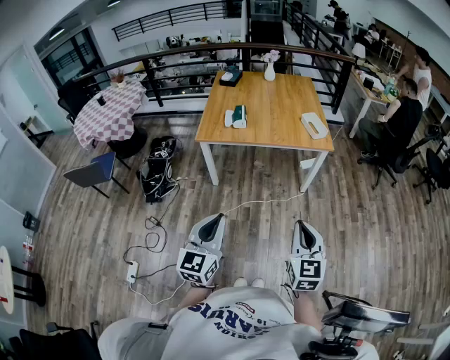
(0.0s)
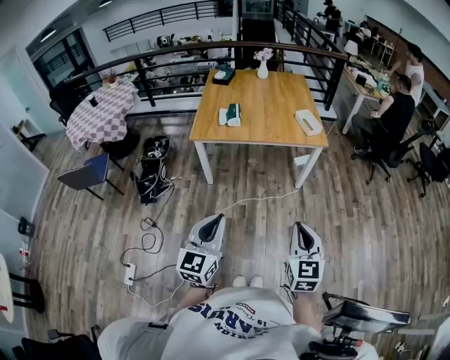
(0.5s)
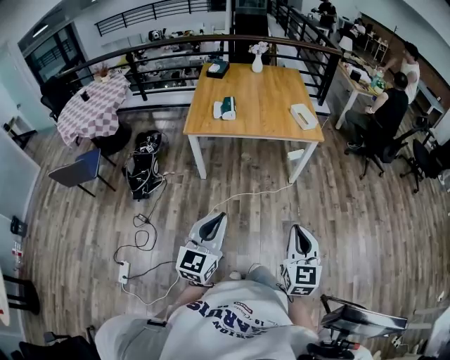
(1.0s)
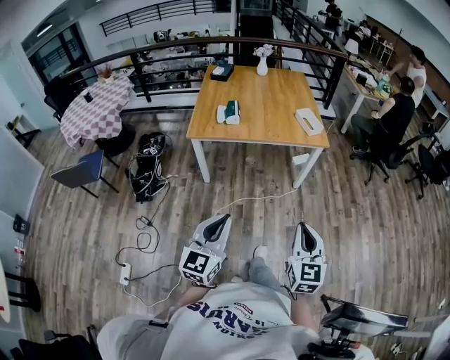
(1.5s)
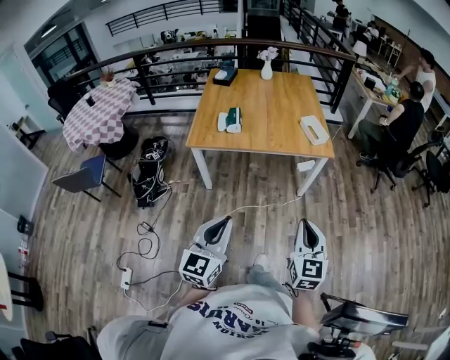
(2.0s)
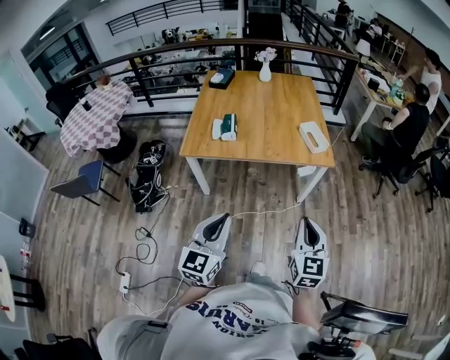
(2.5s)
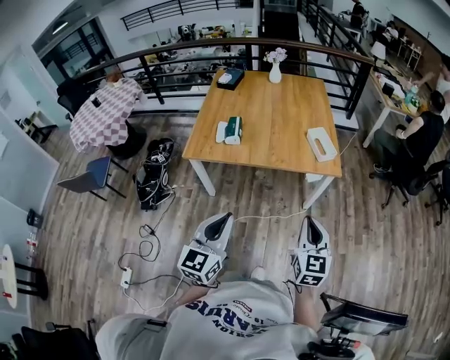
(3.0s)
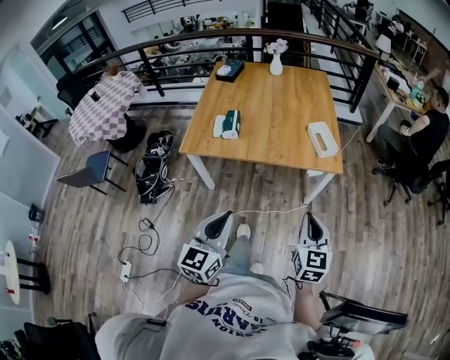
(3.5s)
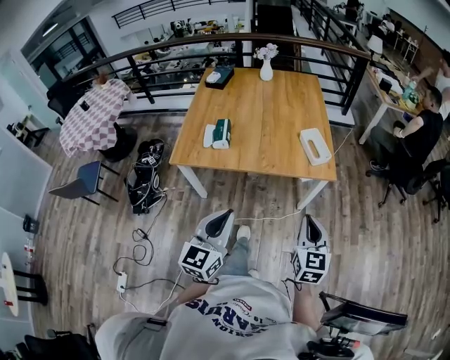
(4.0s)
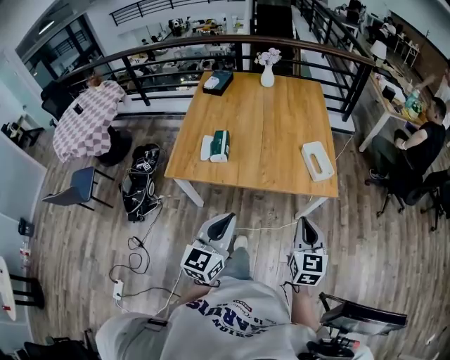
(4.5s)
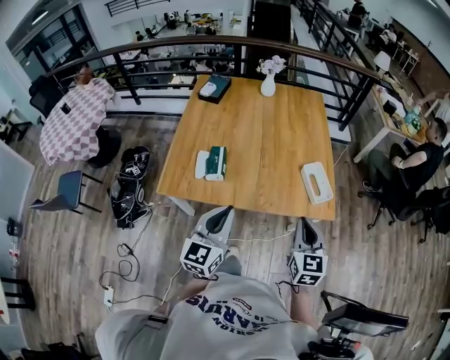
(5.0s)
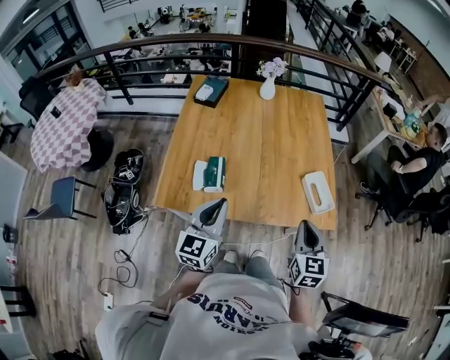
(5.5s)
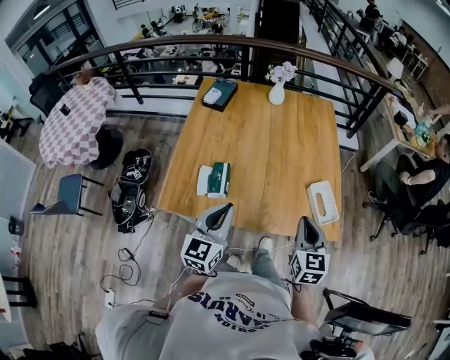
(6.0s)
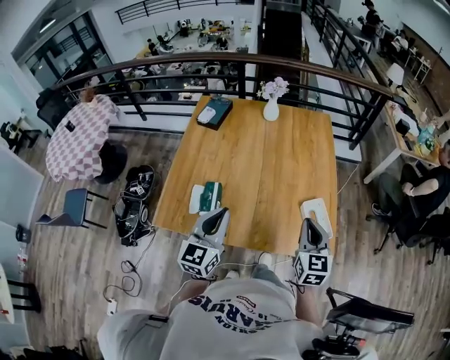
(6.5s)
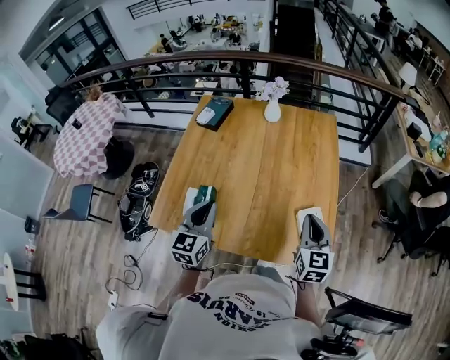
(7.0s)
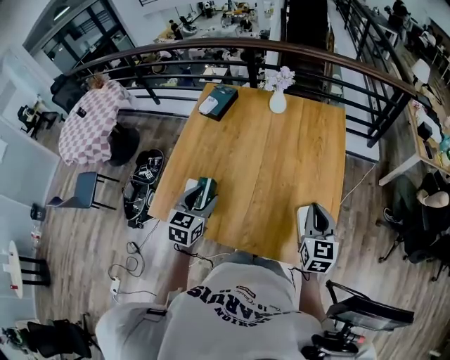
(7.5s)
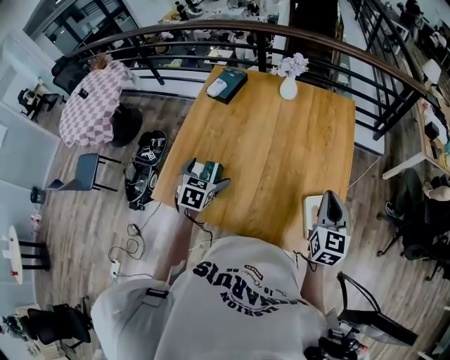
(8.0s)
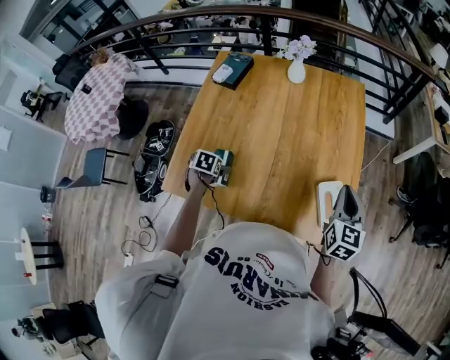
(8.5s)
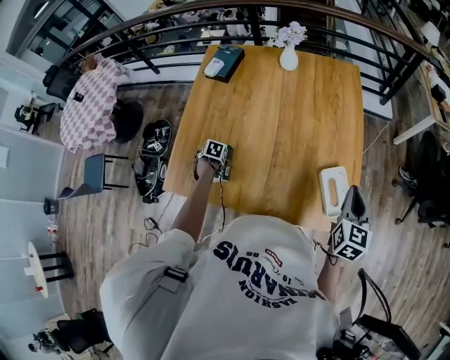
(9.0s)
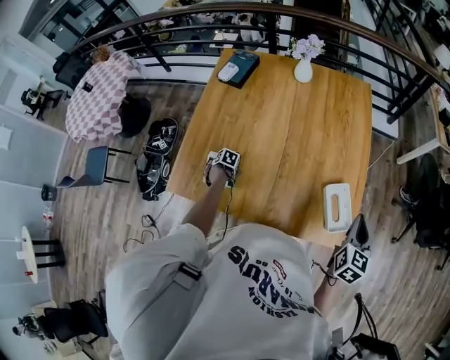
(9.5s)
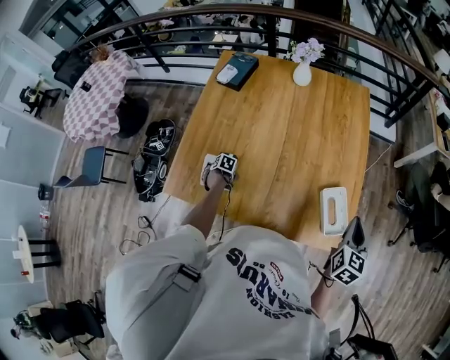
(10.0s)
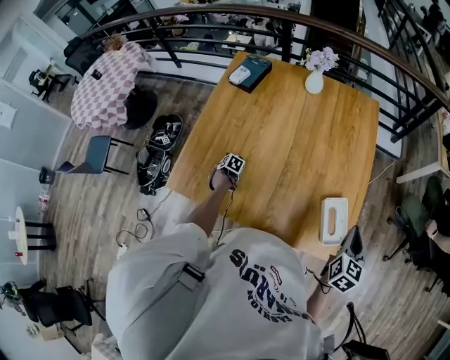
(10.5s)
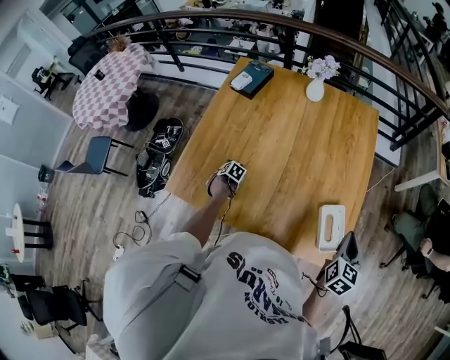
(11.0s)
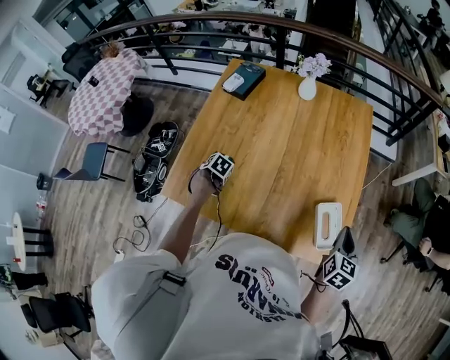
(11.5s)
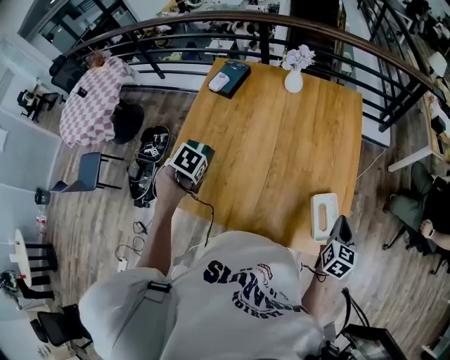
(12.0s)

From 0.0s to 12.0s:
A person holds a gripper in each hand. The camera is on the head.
From 0.0s to 2.0s: The grippers both shift forward by about 10 cm.
From 2.0s to 4.0s: Both grippers travel together forward, roughly 25 cm.
From 4.0s to 6.0s: Both grippers travel together forward, roughly 35 cm.
From 6.0s to 8.0s: The right gripper shifts about 25 cm forward and to the right; the left gripper moves forward and downward, about 25 cm, tips its fingers downward by about 40 degrees, and opens its fingers.
From 8.0s to 10.0s: The left gripper heads downward, covering some 30 cm, and points its fingers roughly 40 degrees further downward. The right gripper moves roughly 10 cm.
From 10.0s to 12.0s: The left gripper is displaced upward by approximately 30 cm, and closes.

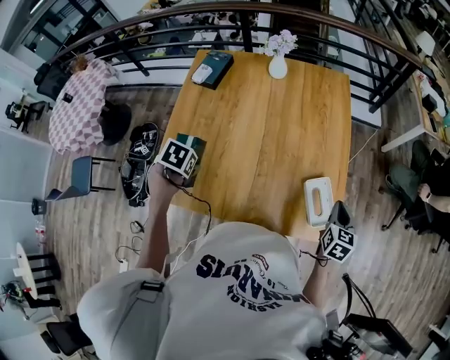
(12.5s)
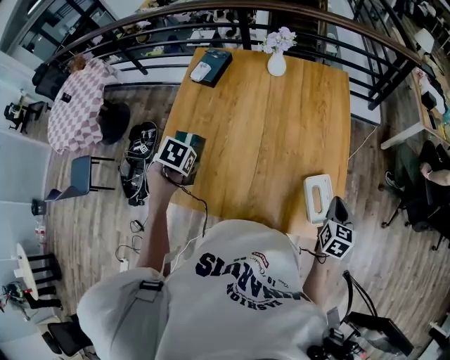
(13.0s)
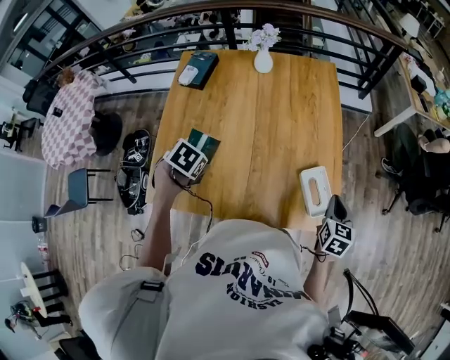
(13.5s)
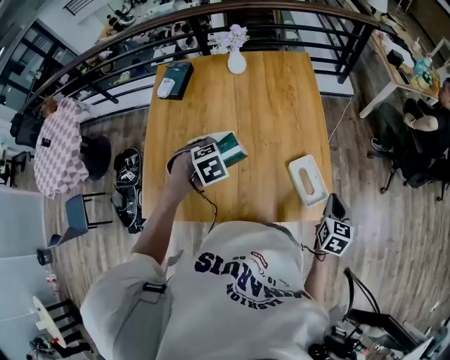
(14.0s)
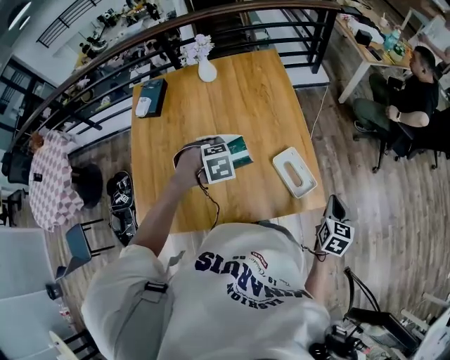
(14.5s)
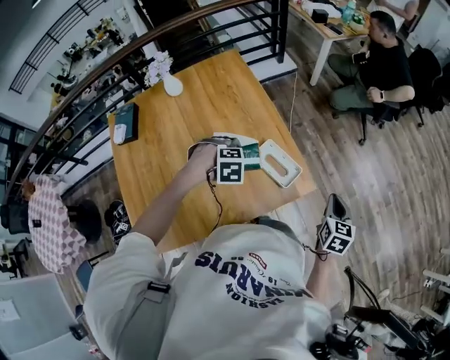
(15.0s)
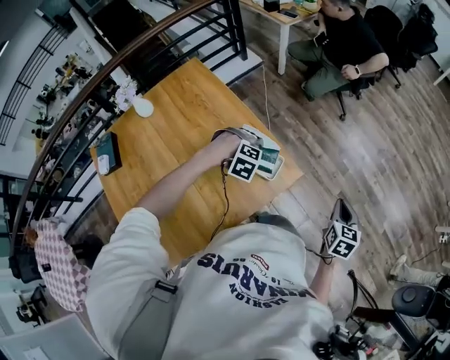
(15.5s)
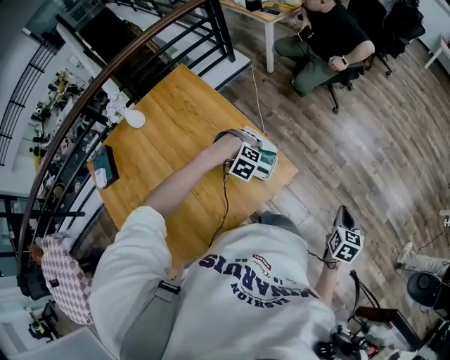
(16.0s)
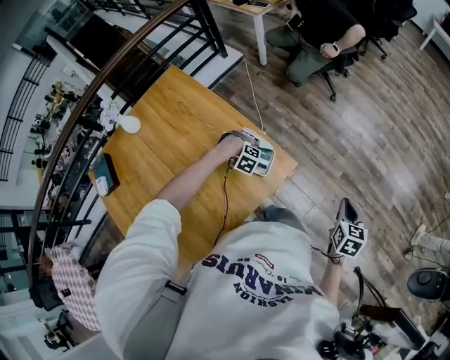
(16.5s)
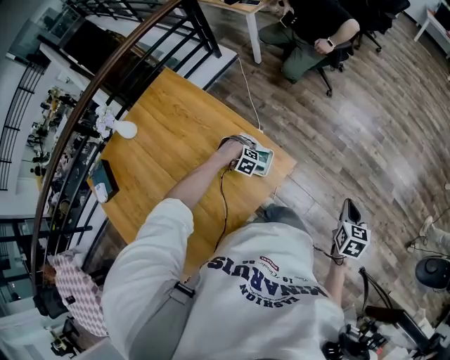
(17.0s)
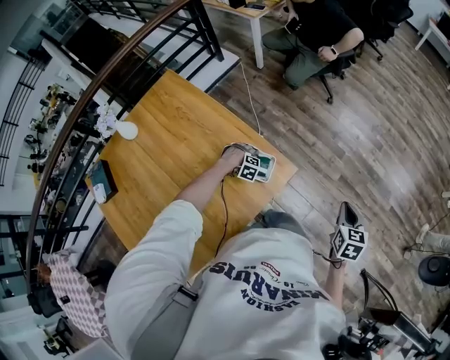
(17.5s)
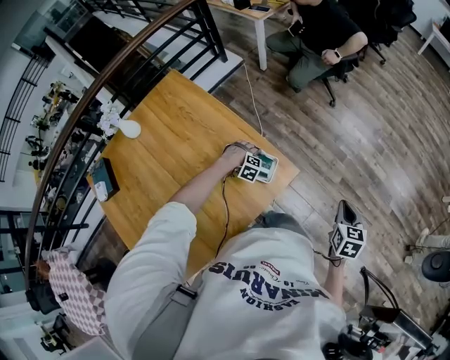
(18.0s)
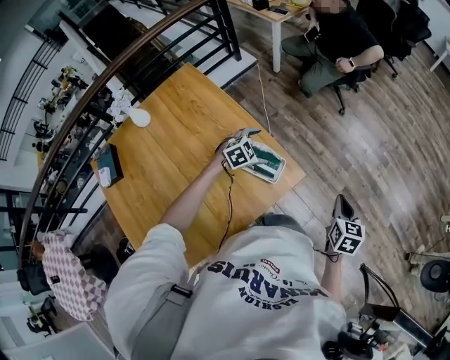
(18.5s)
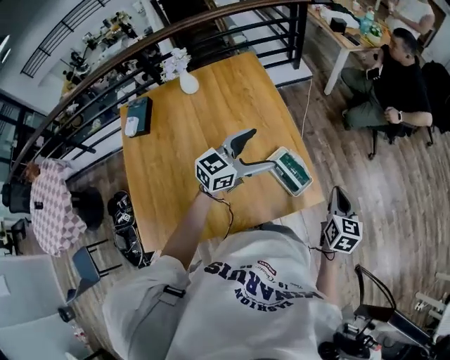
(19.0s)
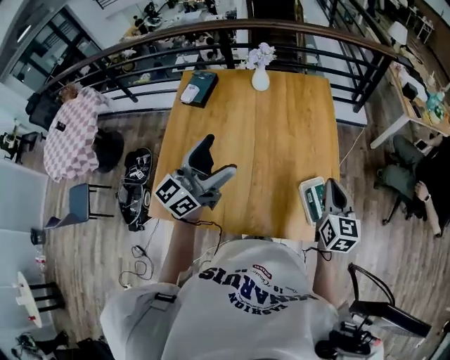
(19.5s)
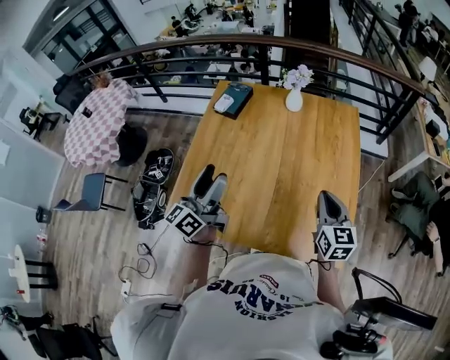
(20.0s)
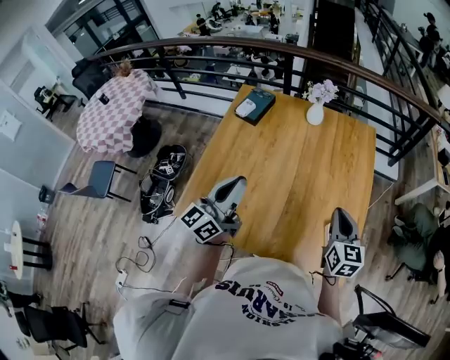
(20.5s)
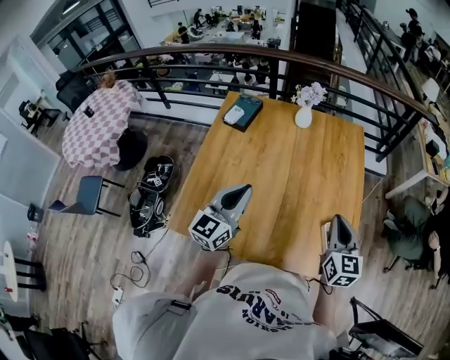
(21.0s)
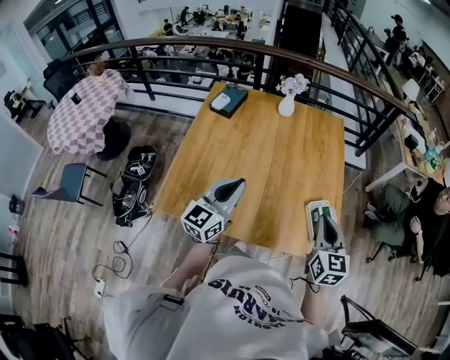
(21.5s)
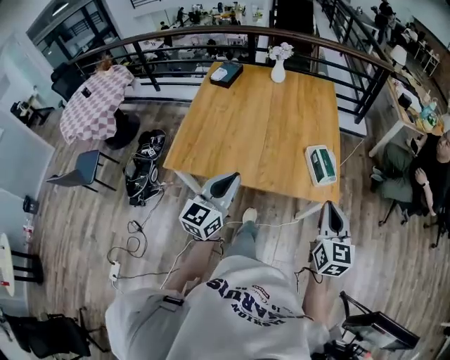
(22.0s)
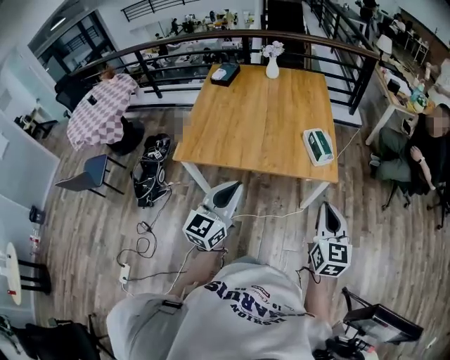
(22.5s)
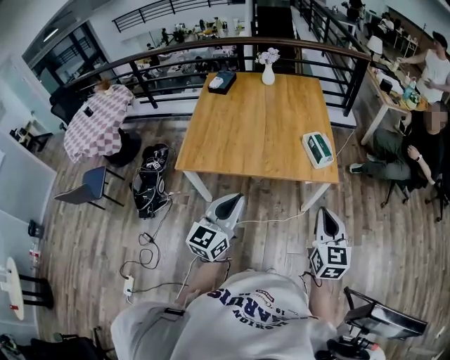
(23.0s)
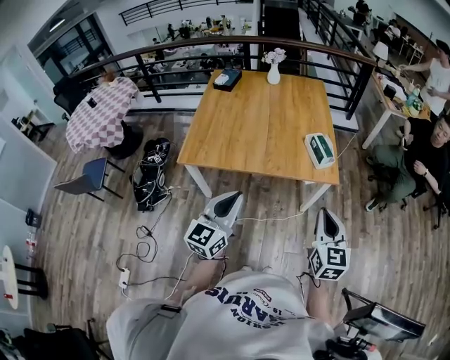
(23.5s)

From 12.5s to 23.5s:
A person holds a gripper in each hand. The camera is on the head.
From 12.5s to 14.5s: The right gripper changes place by some 15 cm, and turns by about 20 degrees, while the left gripper ends up about 25 cm from where it was, and twists approximately 80 degrees clockwise, seen from behind.
From 14.5s to 16.0s: The right gripper ends up about 25 cm from where it was, and turns by some 30 degrees; the left gripper ends up approximately 30 cm from where it was, and rolls clockwise, seen from behind, by approximately 70 degrees.
From 16.0s to 18.0s: The left gripper travels downward by roughly 15 cm.
From 18.0s to 20.0s: The left gripper ends up about 70 cm from where it was, and points its fingers about 100 degrees further upward. Meanwhile the right gripper moves some 50 cm, and changes its angle by some 80 degrees.
From 20.0s to 21.5s: The right gripper moves backward, approximately 15 cm. Meanwhile the left gripper shifts about 10 cm backward and to the right, changes its angle by approximately 30 degrees, and closes.
From 21.5s to 23.5s: Both grippers move backward, approximately 40 cm.

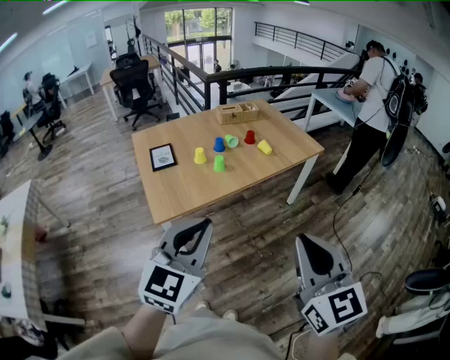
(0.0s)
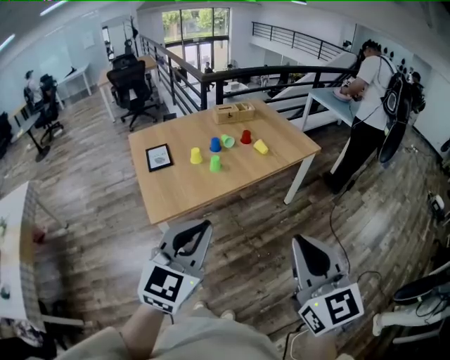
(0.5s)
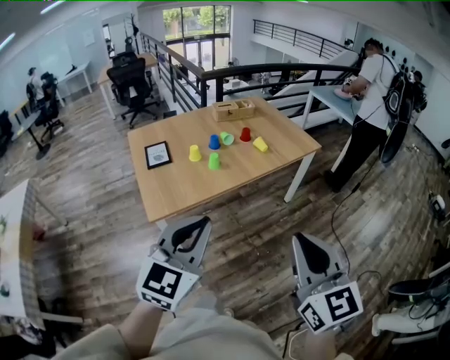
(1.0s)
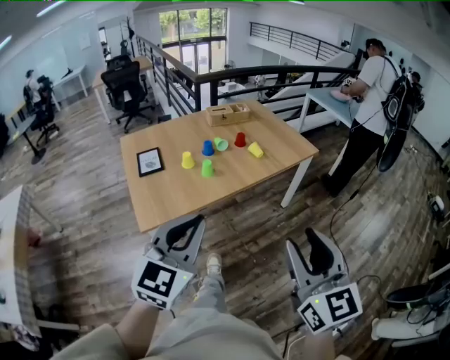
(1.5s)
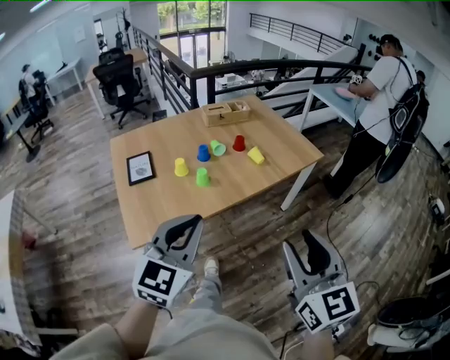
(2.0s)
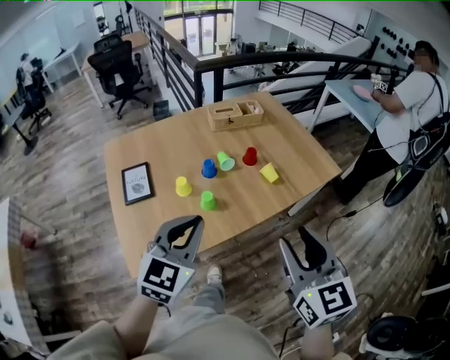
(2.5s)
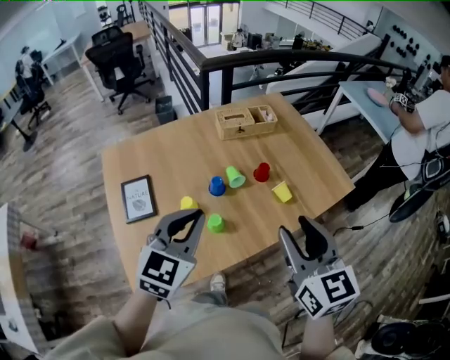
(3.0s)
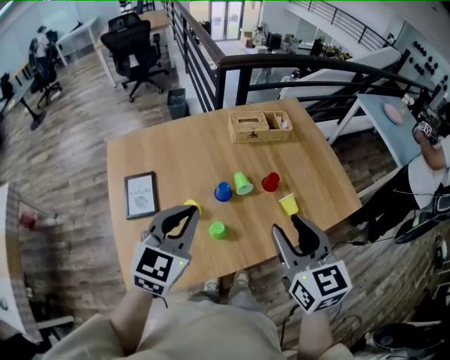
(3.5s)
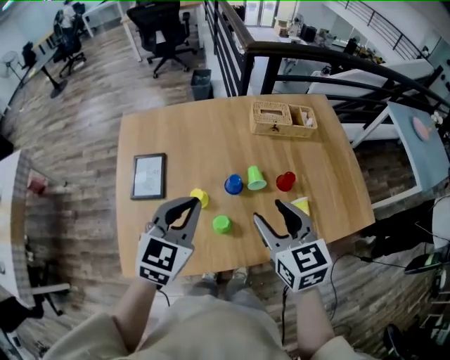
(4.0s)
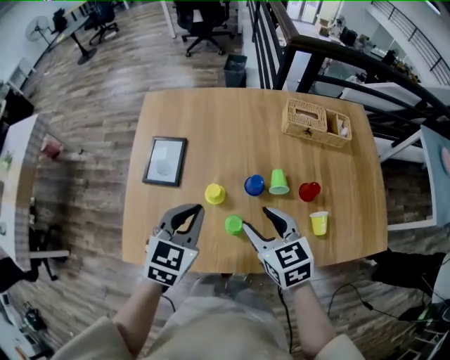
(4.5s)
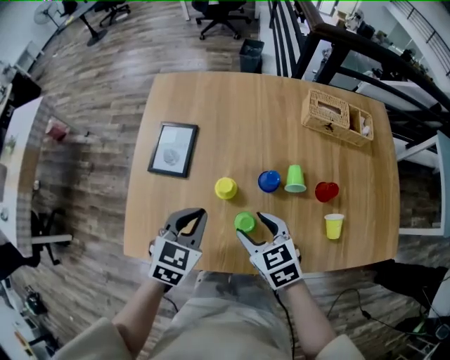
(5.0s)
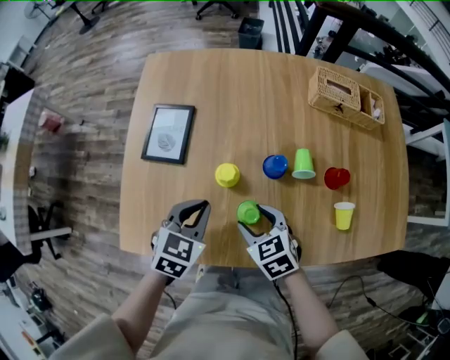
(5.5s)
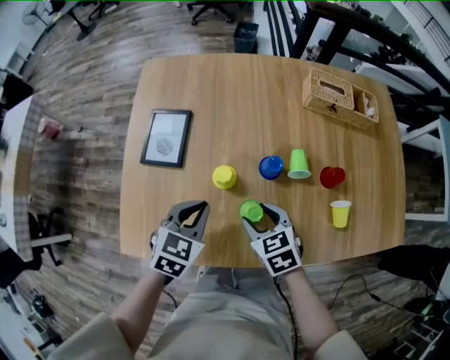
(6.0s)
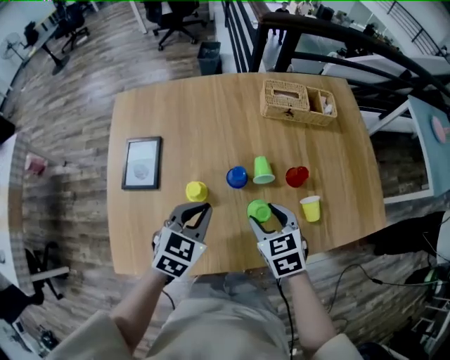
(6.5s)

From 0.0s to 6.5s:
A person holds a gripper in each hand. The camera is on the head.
From 0.0s to 2.0s: The two grippers go approximately 20 cm forward. The right gripper opens.
From 2.0s to 4.5s: The two grippers travel together, some 50 cm. The left gripper rotates some 40 degrees. Meanwhile the right gripper changes its angle by approximately 50 degrees.
From 4.5s to 6.5s: The two grippers go some 10 cm downward and to the right.
